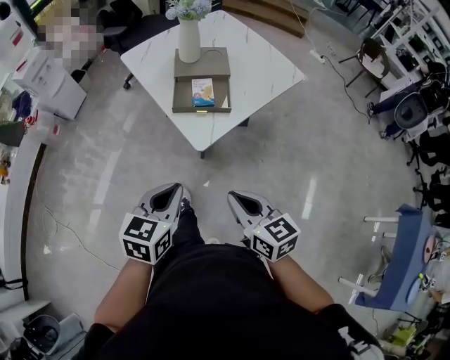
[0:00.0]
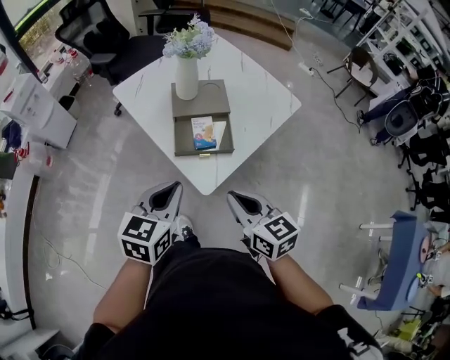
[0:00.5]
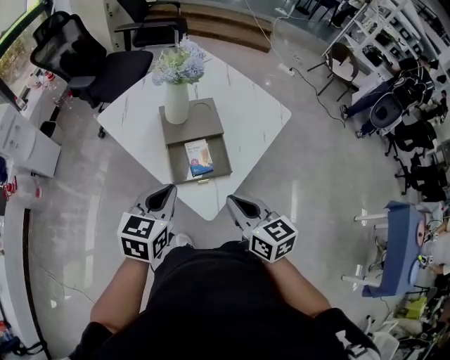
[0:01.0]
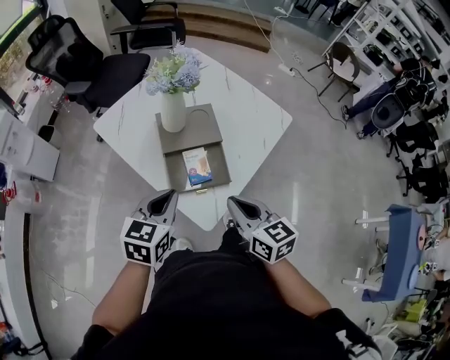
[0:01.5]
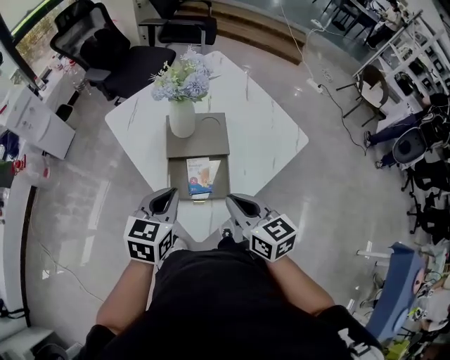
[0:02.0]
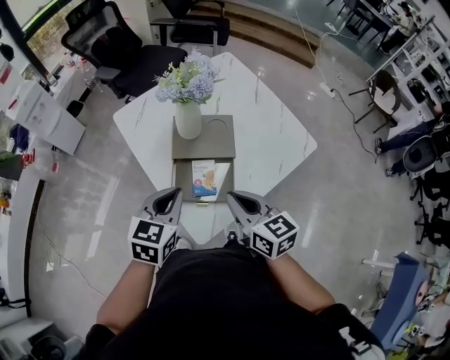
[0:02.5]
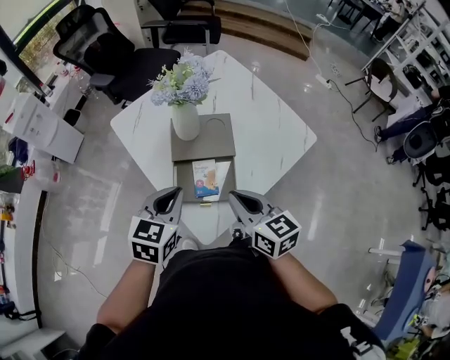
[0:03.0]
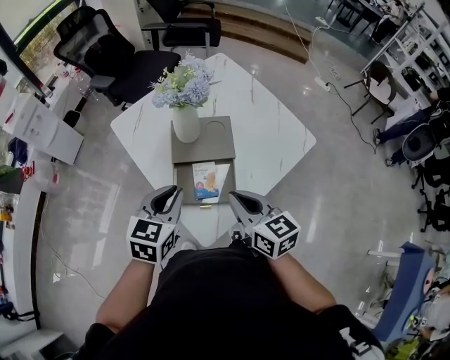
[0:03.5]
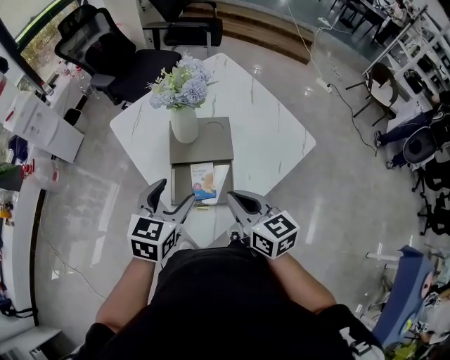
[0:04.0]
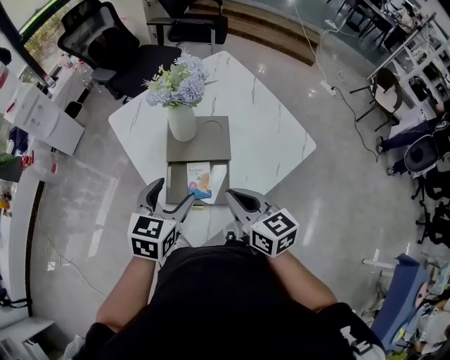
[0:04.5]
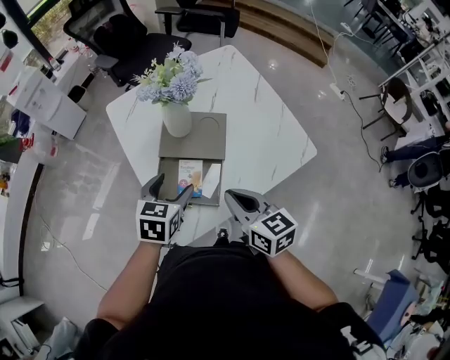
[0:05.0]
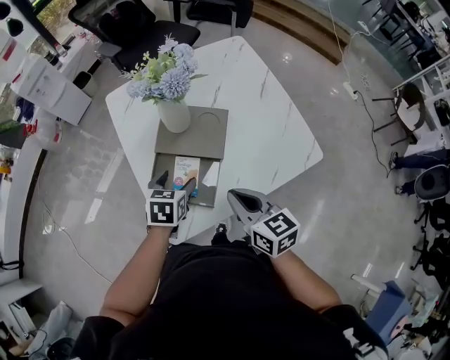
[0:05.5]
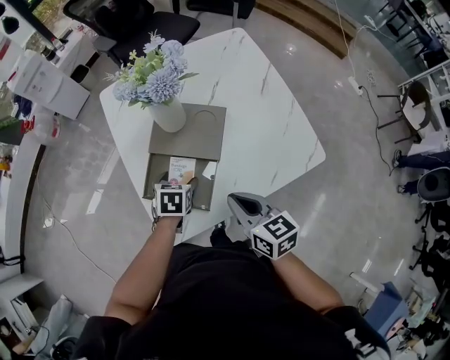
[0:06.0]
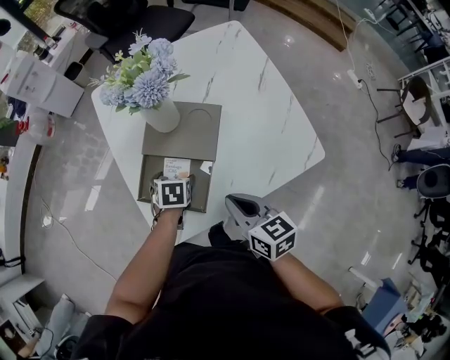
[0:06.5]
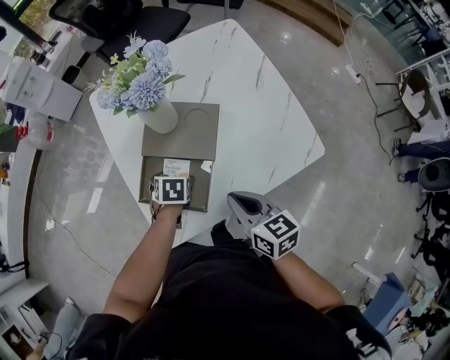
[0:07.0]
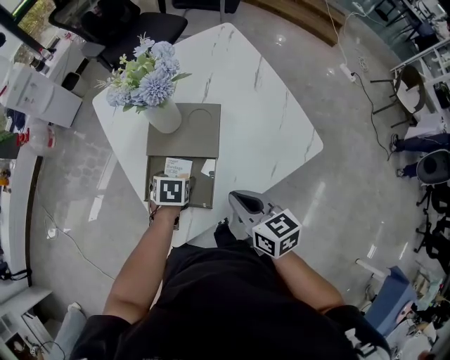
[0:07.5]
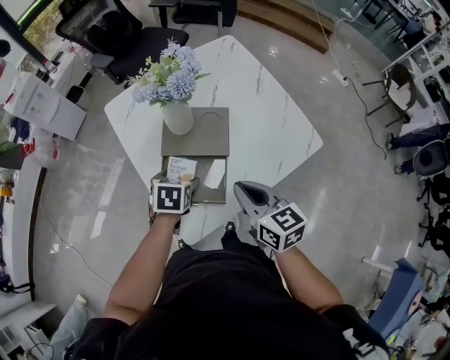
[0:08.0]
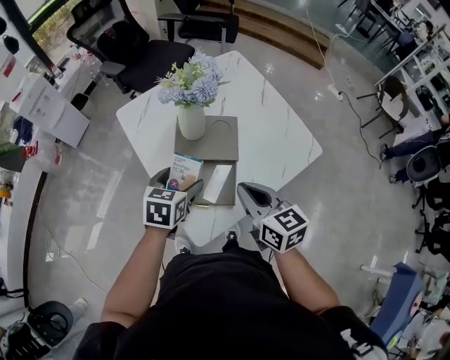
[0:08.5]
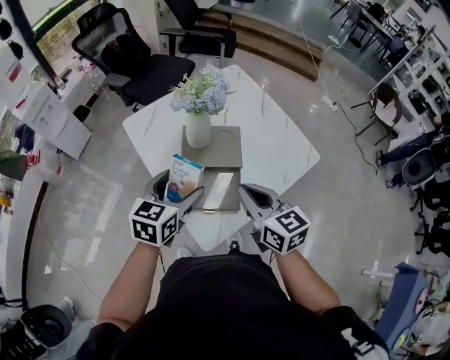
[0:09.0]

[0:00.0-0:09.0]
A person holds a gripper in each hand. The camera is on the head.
0:00.0 to 0:02.0: Both grippers move forward, roughly 35 cm.
0:02.0 to 0:04.5: The left gripper opens its fingers.
0:04.5 to 0:07.0: The left gripper goes roughly 25 cm downward, and points its fingers about 40 degrees further downward; the right gripper is displaced to the right and downward by about 15 cm.
0:07.0 to 0:09.0: The right gripper is displaced upward and to the left by approximately 15 cm, and rotates some 20 degrees, while the left gripper moves upward, some 25 cm, and tilts its fingers some 50 degrees upward.

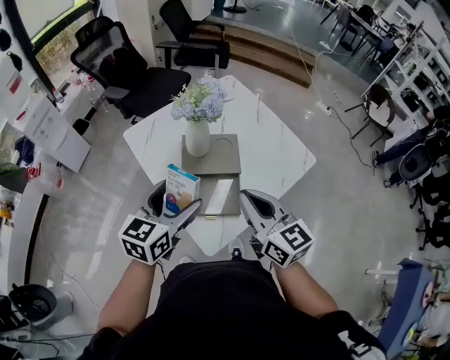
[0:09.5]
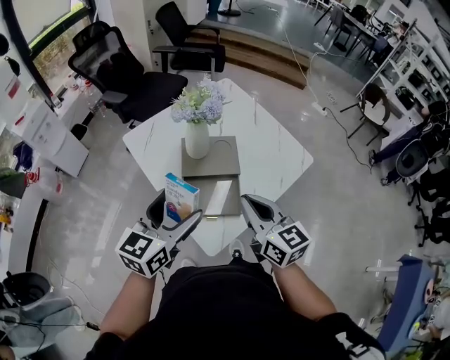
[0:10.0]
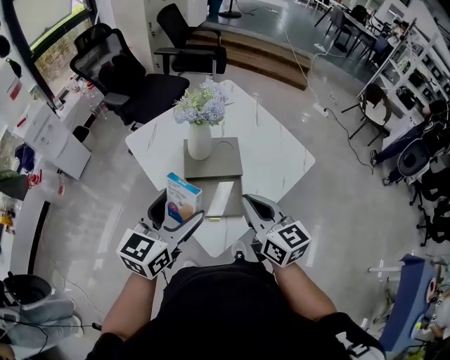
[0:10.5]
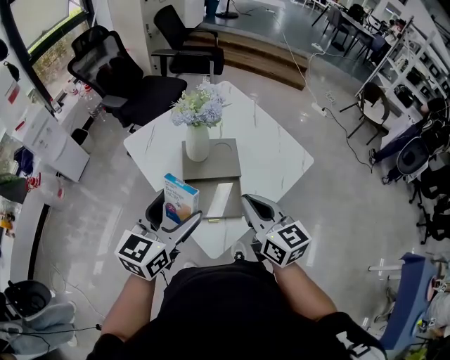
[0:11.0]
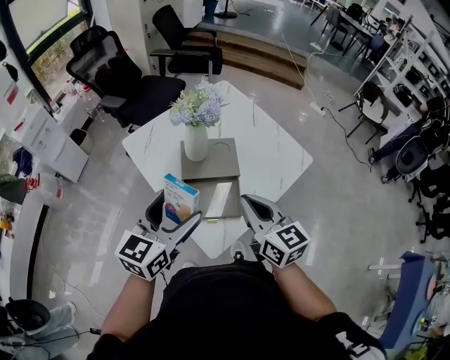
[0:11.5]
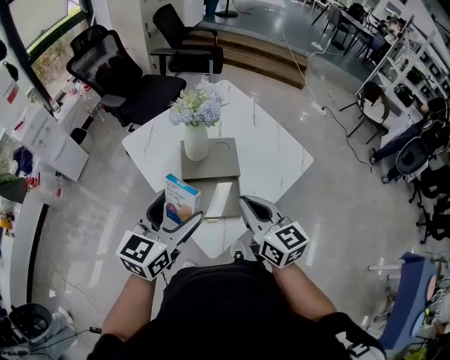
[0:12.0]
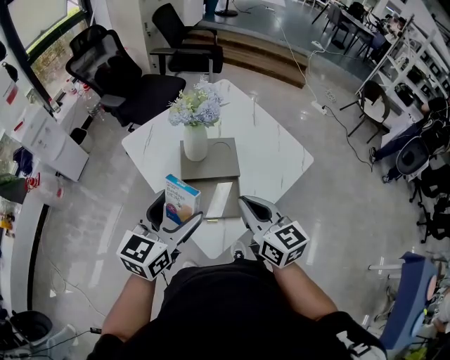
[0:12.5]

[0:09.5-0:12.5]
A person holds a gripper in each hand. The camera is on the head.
0:09.5 to 0:11.0: The grippers stay close to where they were, moving slightly.
0:11.0 to 0:12.5: Both grippers stay about where they are.

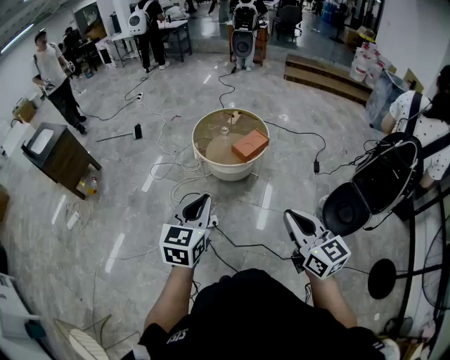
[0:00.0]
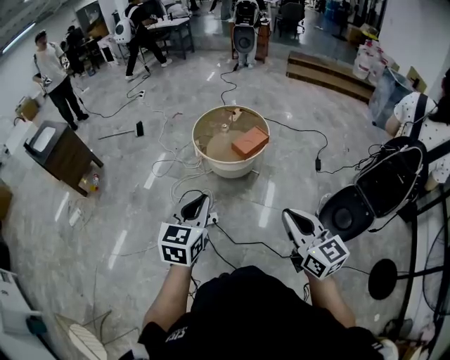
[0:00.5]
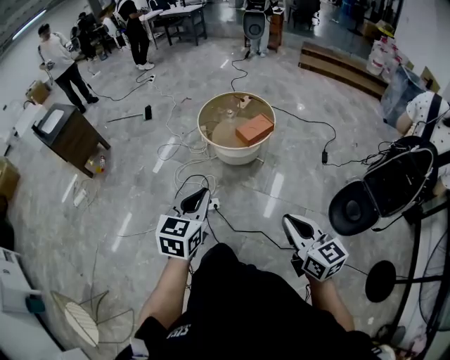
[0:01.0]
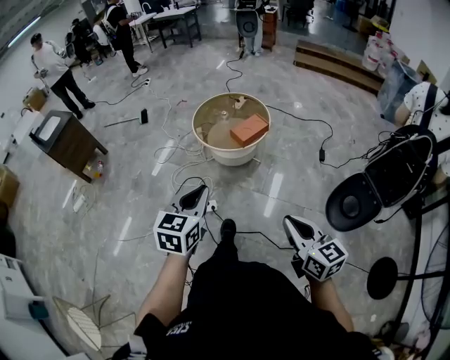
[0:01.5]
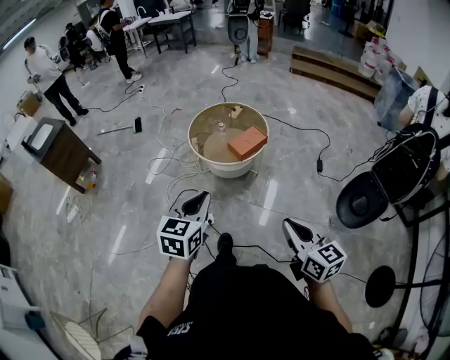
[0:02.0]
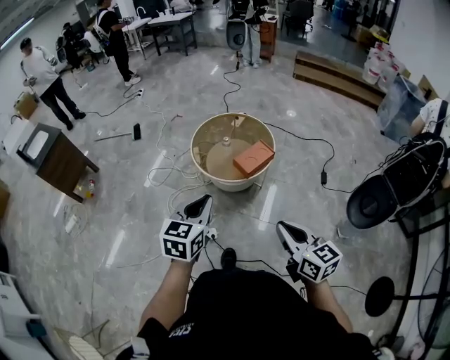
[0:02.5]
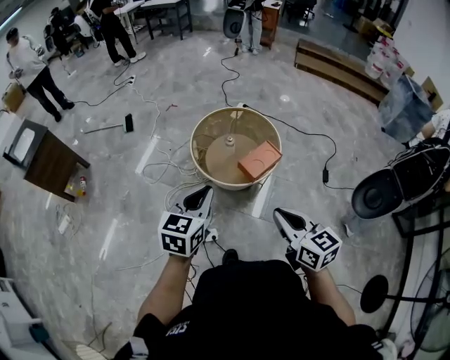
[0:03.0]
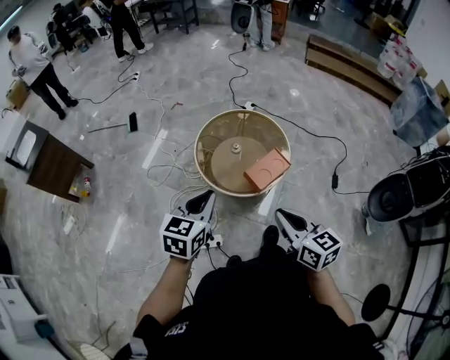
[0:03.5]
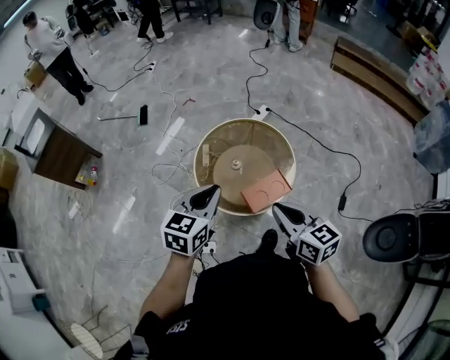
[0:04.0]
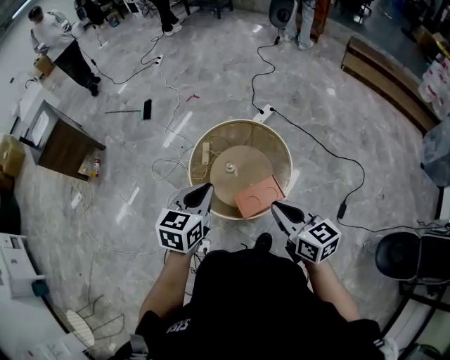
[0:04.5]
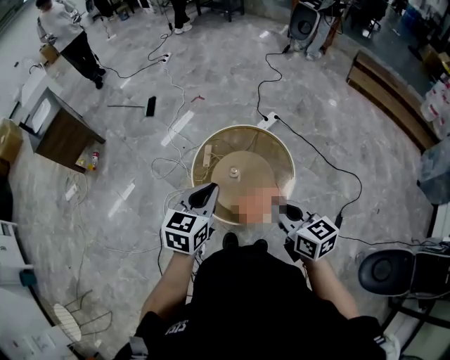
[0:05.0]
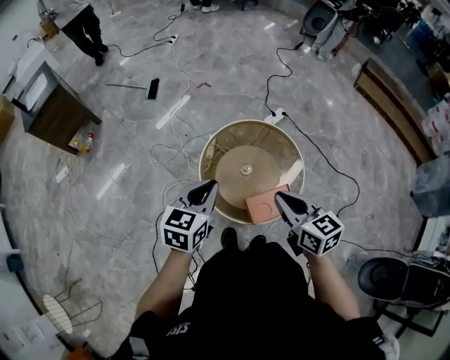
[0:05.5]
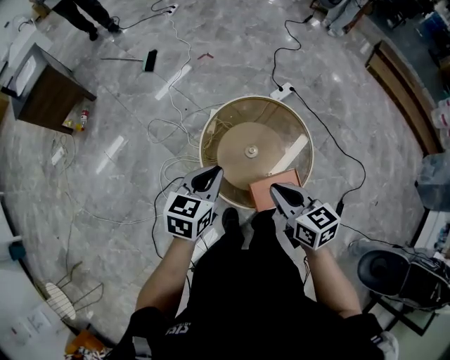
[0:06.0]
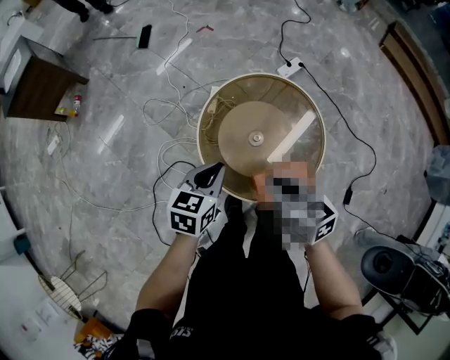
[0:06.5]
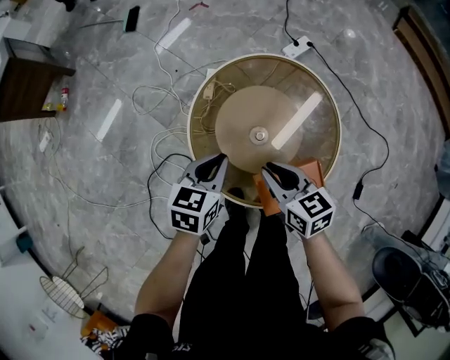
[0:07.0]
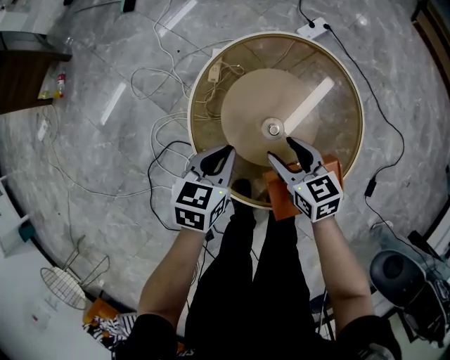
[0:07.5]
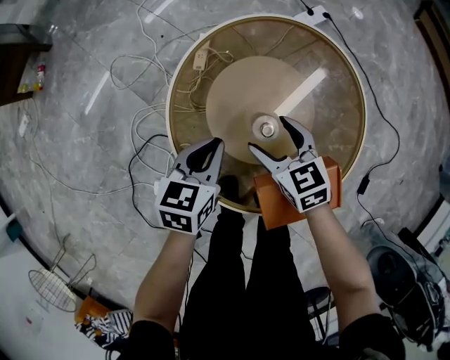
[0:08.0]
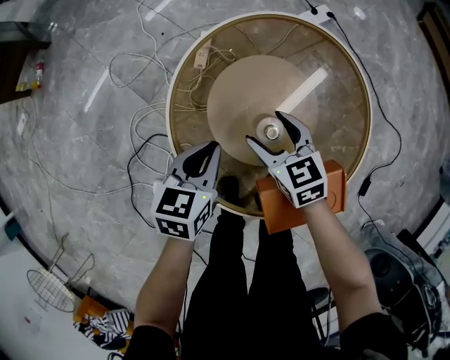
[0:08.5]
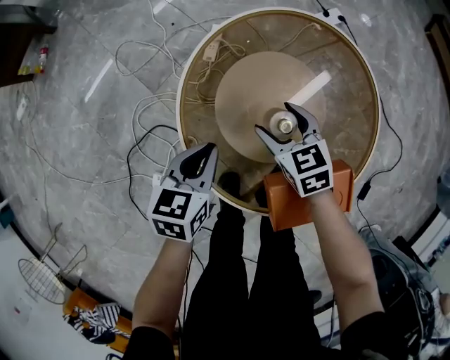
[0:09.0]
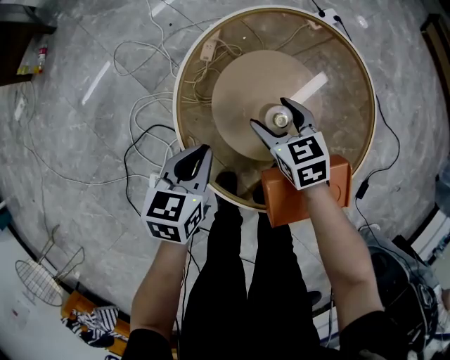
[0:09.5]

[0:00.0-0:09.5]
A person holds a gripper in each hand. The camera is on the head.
0:00.0 to 0:02.0: The right gripper travels to the right and downward by approximately 10 cm; the left gripper travels to the right and forward by approximately 10 cm.
0:02.0 to 0:04.0: The pair of grippers is taken forward, about 50 cm.
0:04.0 to 0:05.5: The left gripper is displaced forward and to the left by approximately 10 cm. Meanwhile the right gripper travels forward by some 15 cm.
0:05.5 to 0:07.5: The right gripper moves downward and forward, some 40 cm, and opens its fingers. The left gripper is displaced downward by roughly 40 cm.
0:07.5 to 0:09.5: The left gripper is displaced downward and to the left by some 10 cm; the right gripper travels downward and forward by roughly 10 cm.

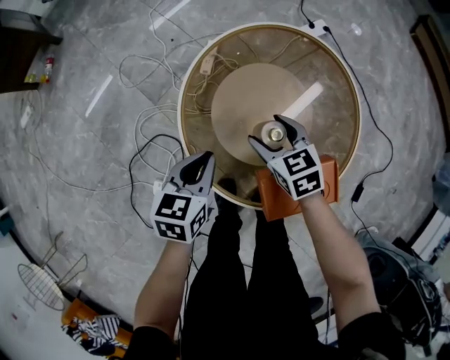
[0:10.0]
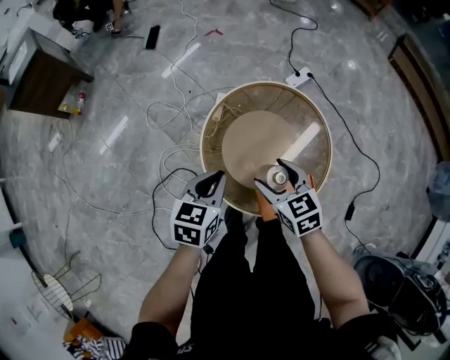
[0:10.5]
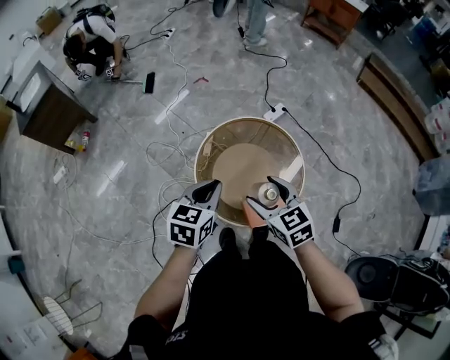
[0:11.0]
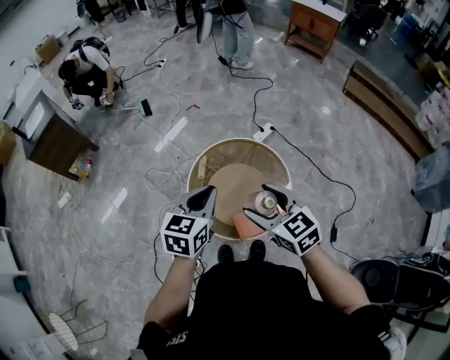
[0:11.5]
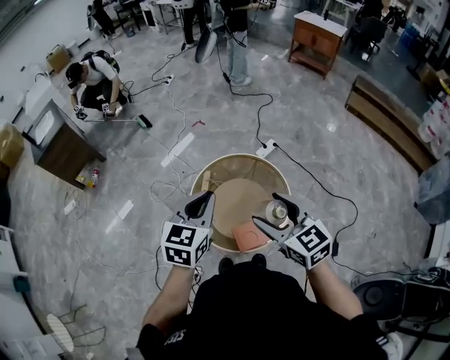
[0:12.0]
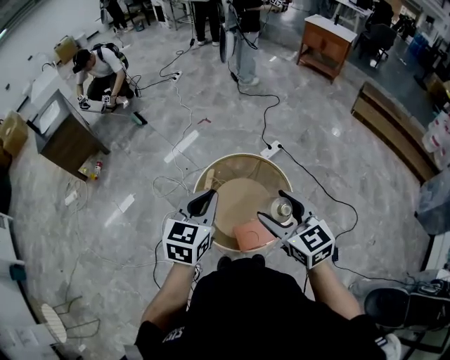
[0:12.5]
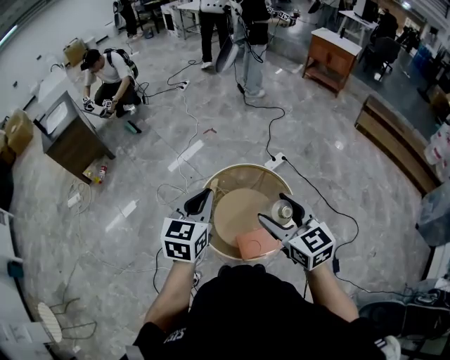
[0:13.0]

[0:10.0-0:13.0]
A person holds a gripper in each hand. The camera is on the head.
0:10.0 to 0:11.5: Both grippers travel together upward, approximately 50 cm. The left gripper changes its angle by approximately 20 degrees, while the right gripper turns by roughly 20 degrees.
0:11.5 to 0:13.0: The grippers both shift upward by some 5 cm.

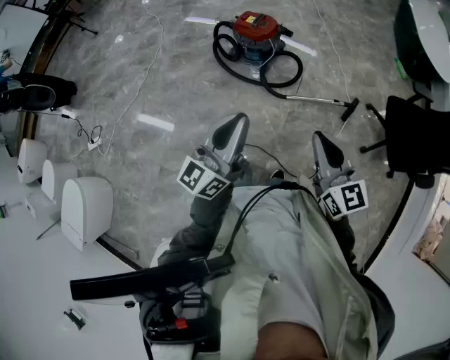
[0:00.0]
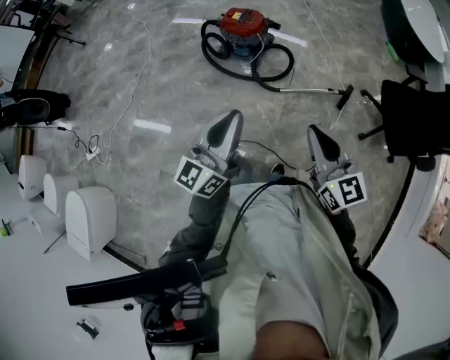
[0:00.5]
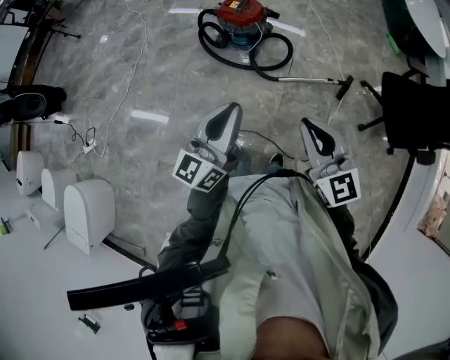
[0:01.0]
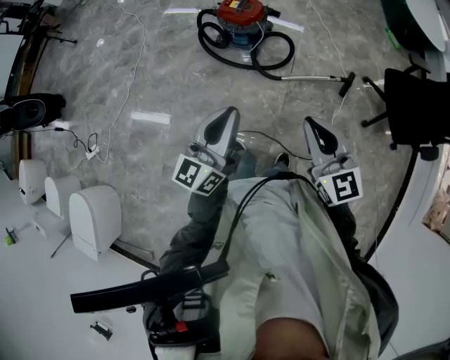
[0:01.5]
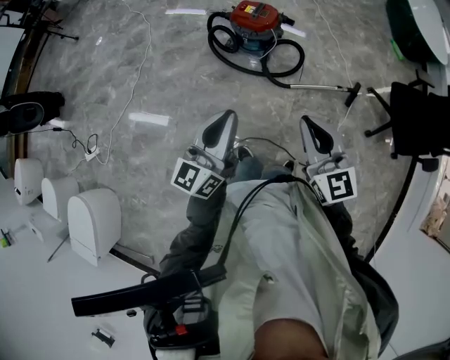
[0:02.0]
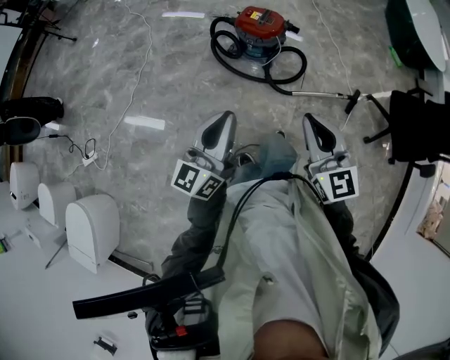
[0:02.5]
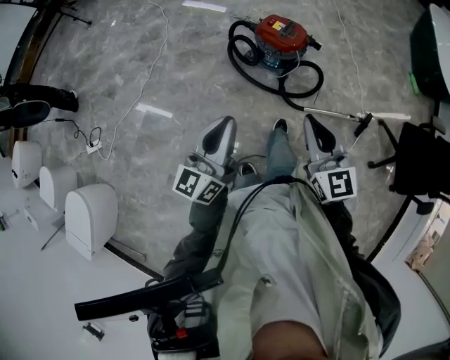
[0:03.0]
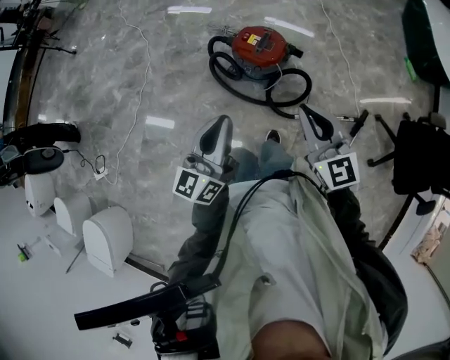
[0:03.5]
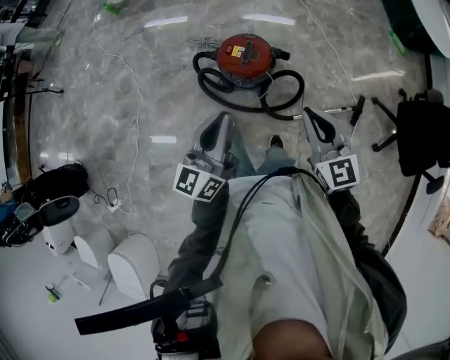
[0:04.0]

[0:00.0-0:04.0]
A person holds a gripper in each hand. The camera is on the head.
0:00.0 to 0:02.0: Both grippers move to the left and forward, about 15 cm.
0:02.0 to 0:04.0: Both grippers travel together forward, roughly 40 cm.
